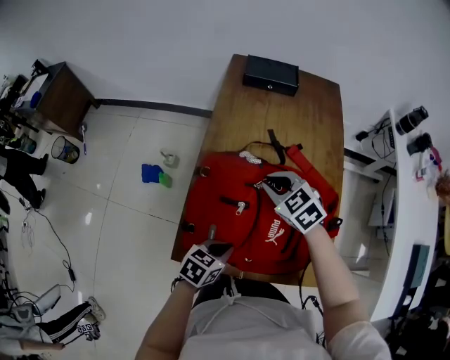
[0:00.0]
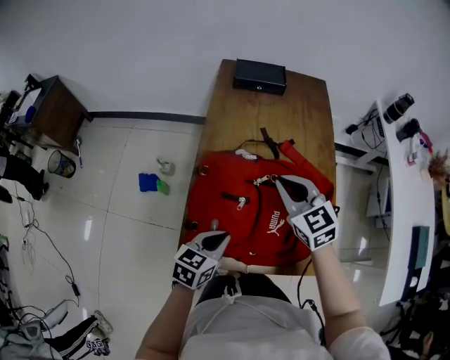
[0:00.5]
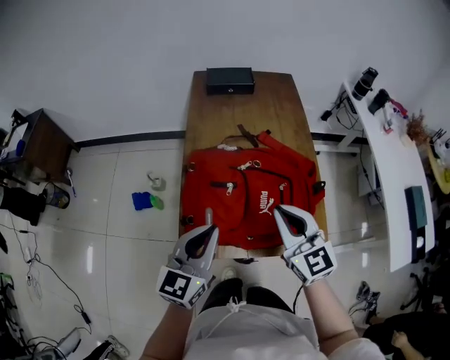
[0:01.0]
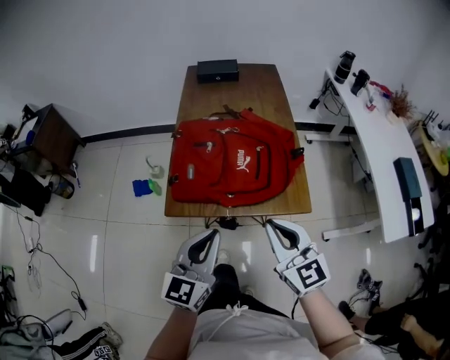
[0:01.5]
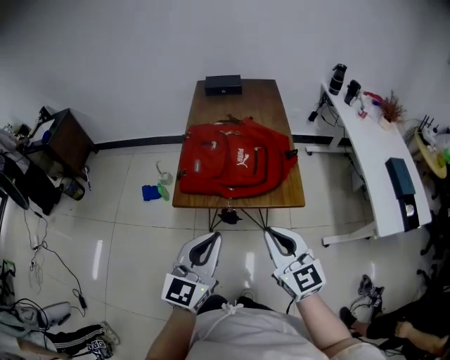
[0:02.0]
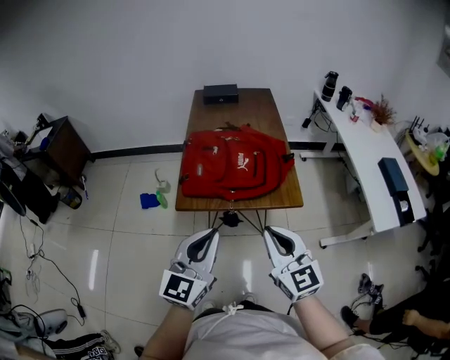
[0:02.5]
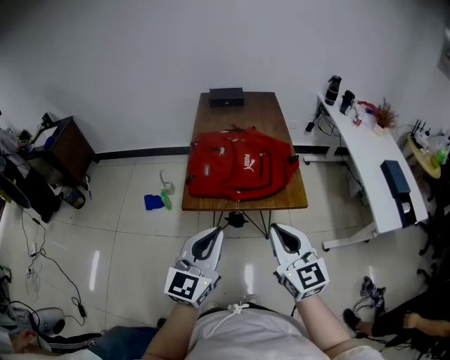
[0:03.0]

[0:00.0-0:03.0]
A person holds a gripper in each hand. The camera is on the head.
0:00.0 to 0:01.5: The right gripper goes about 40 cm backward, and points its fingers roughly 40 degrees further upward; the left gripper is displaced upward and backward by approximately 30 cm, and angles its fingers upward, by some 40 degrees.
0:01.5 to 0:03.0: Both grippers travel together backward and upward, roughly 15 cm.

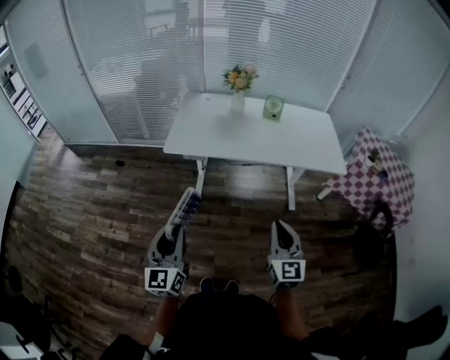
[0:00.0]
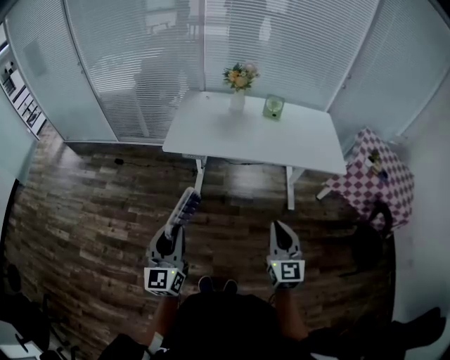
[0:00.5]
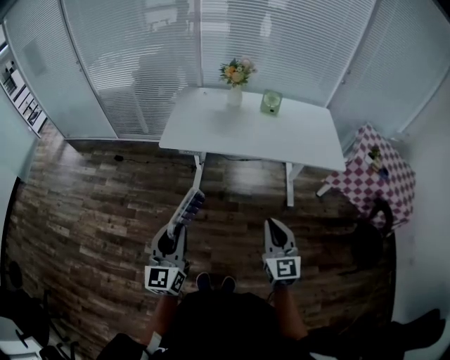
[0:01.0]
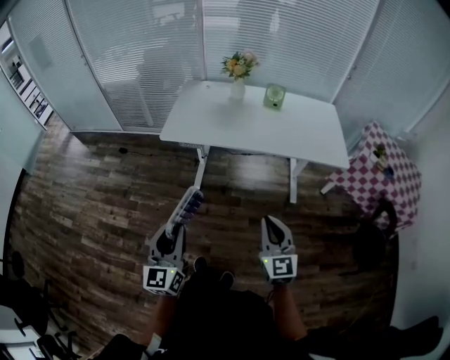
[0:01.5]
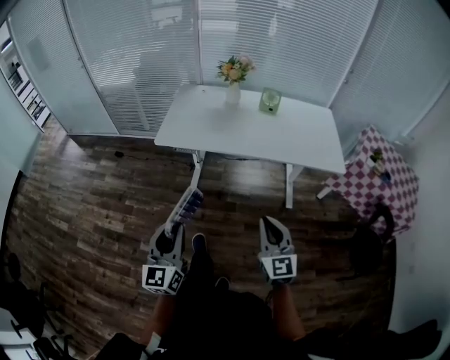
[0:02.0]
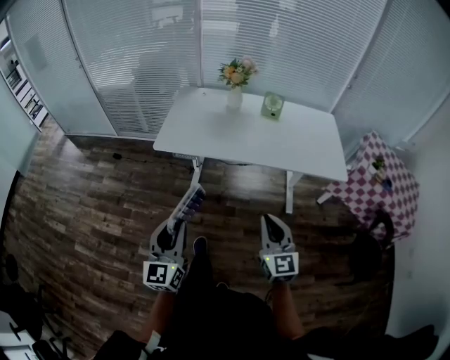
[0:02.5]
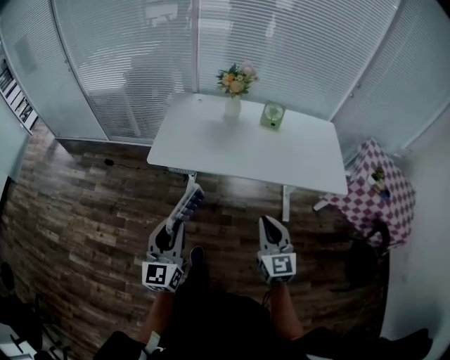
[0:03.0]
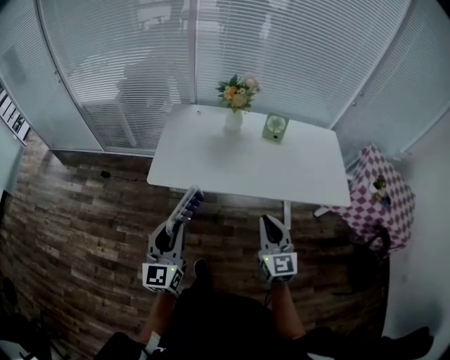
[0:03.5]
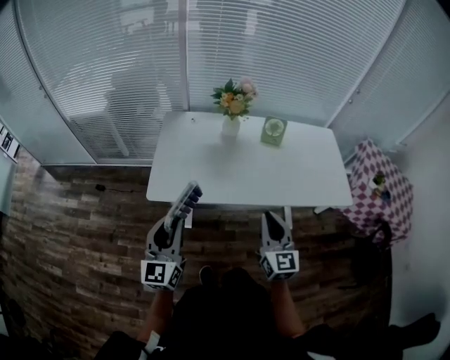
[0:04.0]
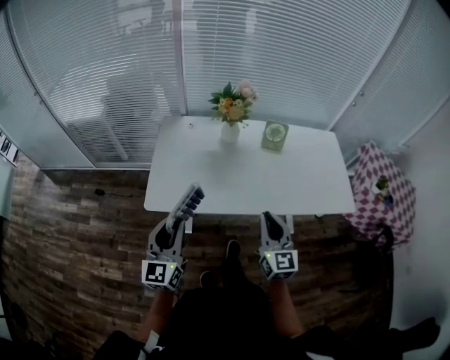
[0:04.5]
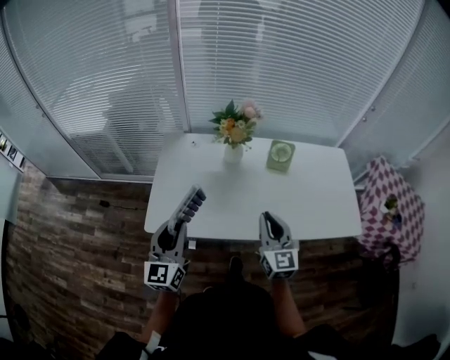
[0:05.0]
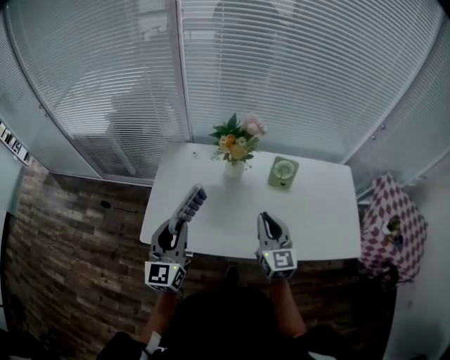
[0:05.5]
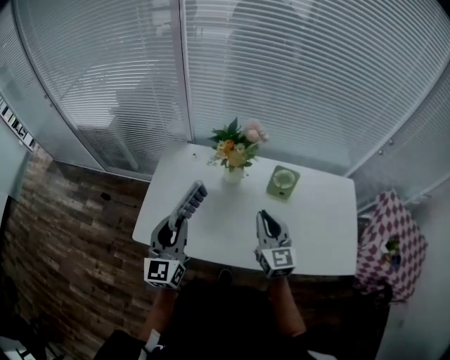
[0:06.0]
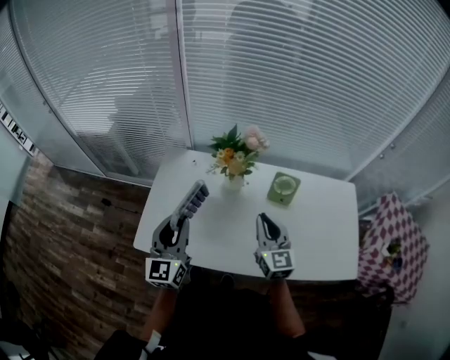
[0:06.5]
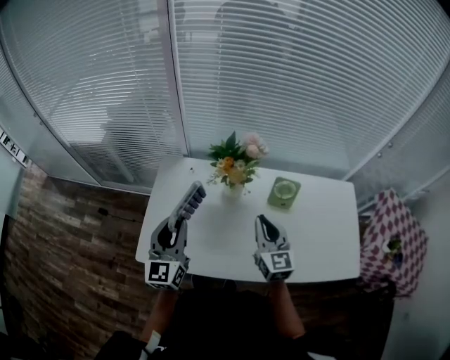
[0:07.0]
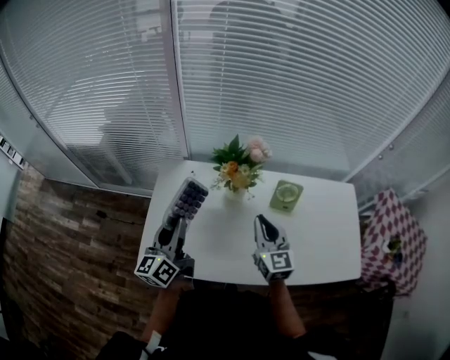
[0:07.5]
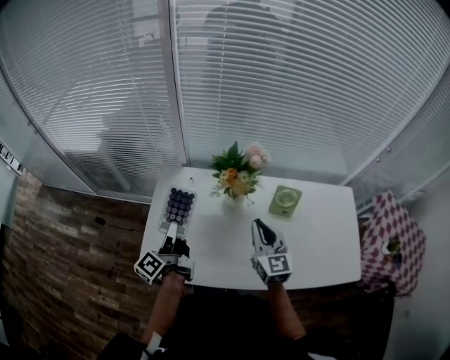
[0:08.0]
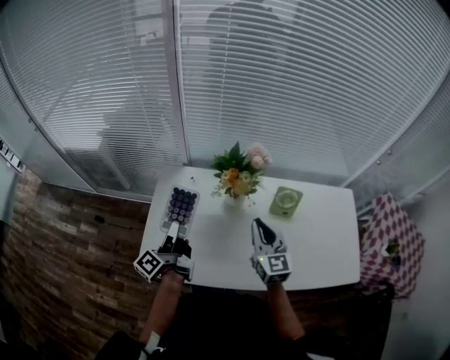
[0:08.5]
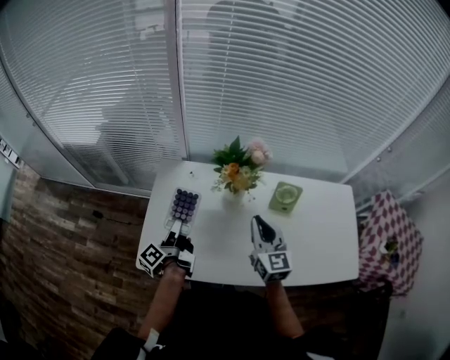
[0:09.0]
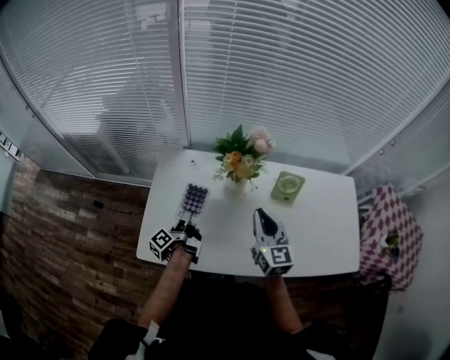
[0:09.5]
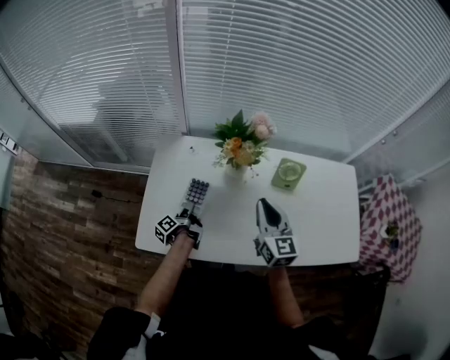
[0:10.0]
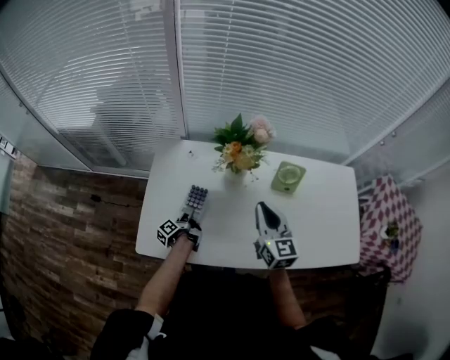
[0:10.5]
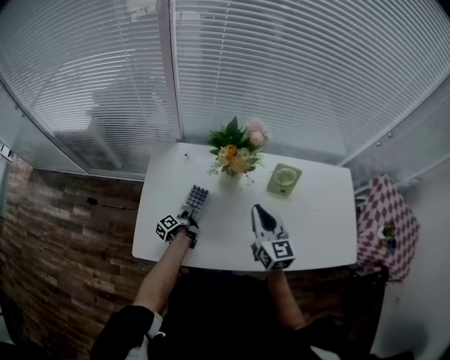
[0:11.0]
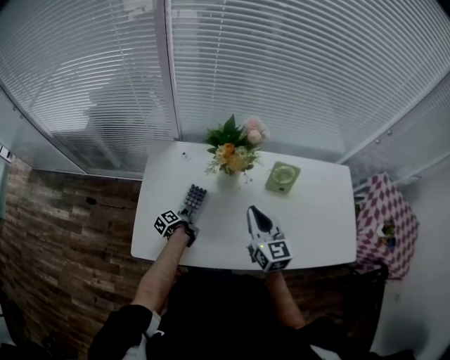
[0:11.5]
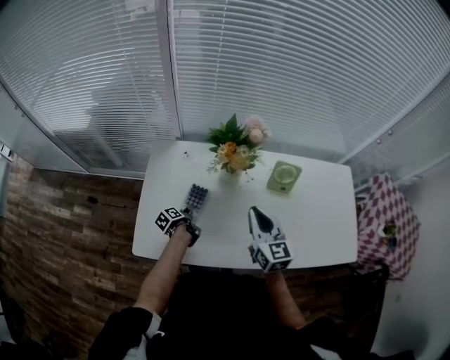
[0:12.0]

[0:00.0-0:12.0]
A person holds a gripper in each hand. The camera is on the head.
0:00.0 to 0:02.0: The left gripper moves to the right, some 10 cm.
0:02.0 to 0:04.0: Both grippers move forward, about 30 cm.
0:04.0 to 0:06.0: The two grippers go roughly 25 cm forward.
0:06.0 to 0:08.0: The left gripper shifts approximately 15 cm forward and to the left, and rotates around the line of its fingers by roughly 70 degrees, counterclockwise from behind. Meanwhile the right gripper travels forward by roughly 5 cm.
0:08.0 to 0:10.0: The left gripper travels downward by approximately 25 cm, and swivels approximately 30 degrees.
0:10.0 to 0:12.0: The left gripper heads downward, covering approximately 10 cm, rotates roughly 30 degrees, and opens.

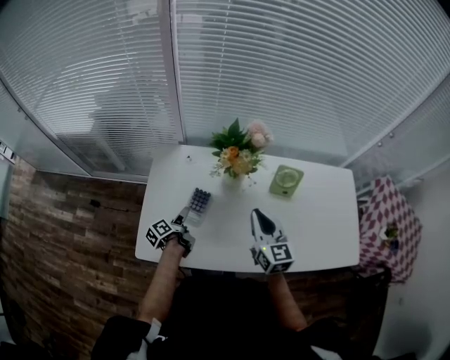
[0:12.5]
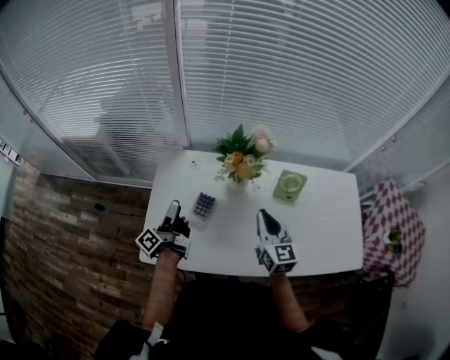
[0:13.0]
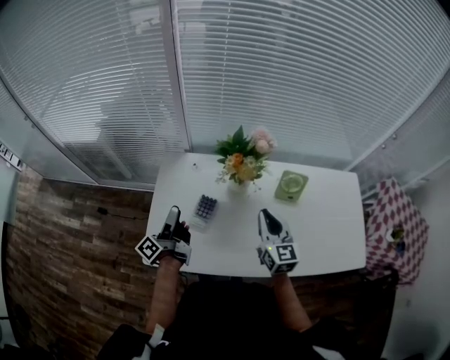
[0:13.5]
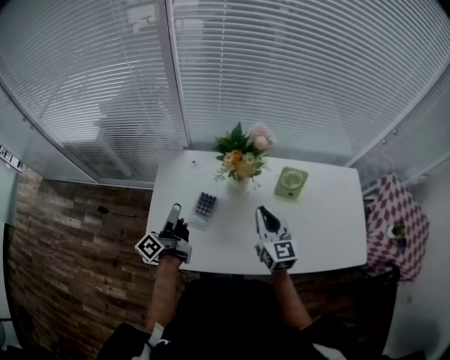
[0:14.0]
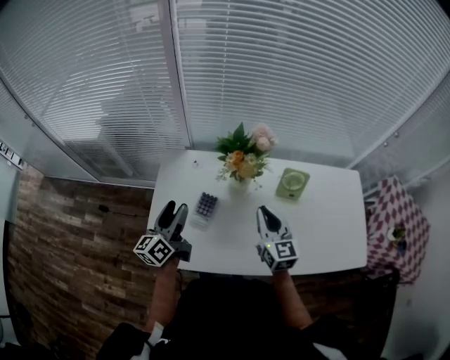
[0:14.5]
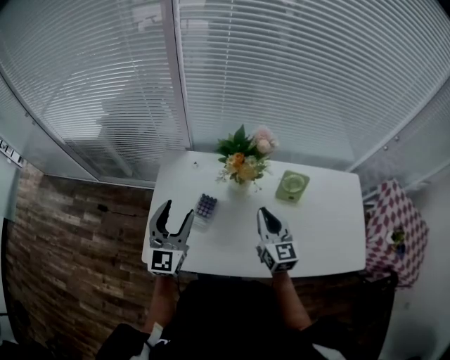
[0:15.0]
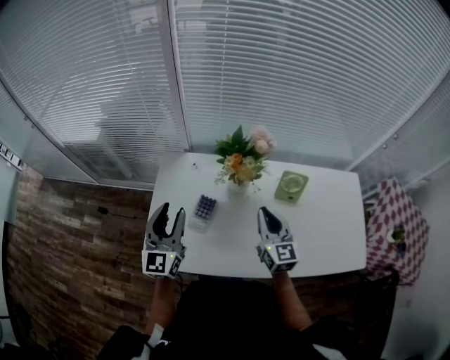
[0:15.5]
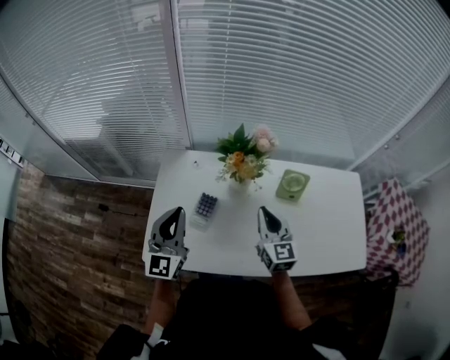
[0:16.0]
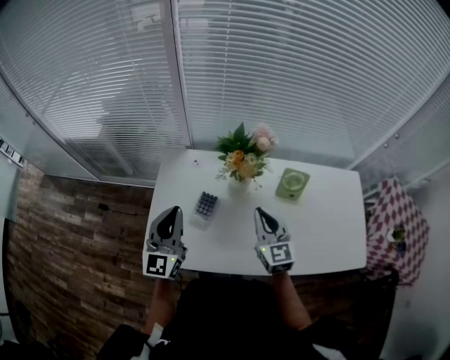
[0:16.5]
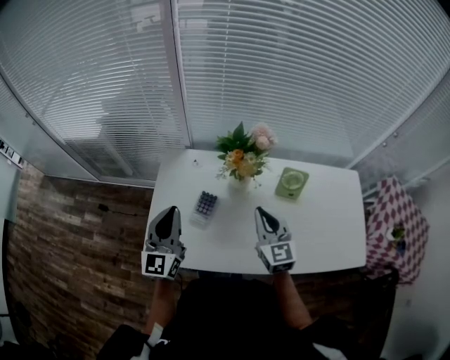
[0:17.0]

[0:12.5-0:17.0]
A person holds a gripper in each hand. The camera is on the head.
0:12.5 to 0:14.5: The left gripper moves upward, some 20 cm, and twists approximately 40 degrees clockwise, seen from behind.
0:14.5 to 0:17.0: The left gripper heads upward, covering approximately 5 cm, changes its angle by some 40 degrees, and closes its fingers.

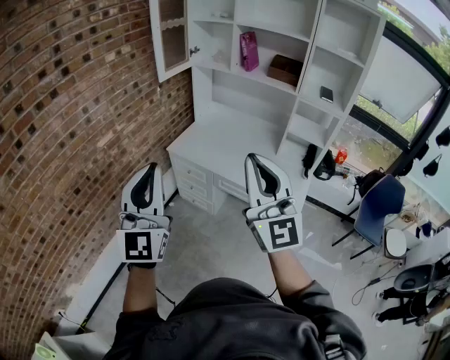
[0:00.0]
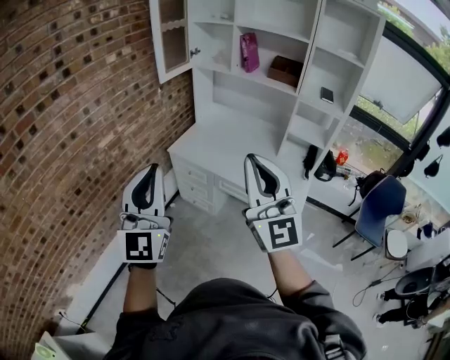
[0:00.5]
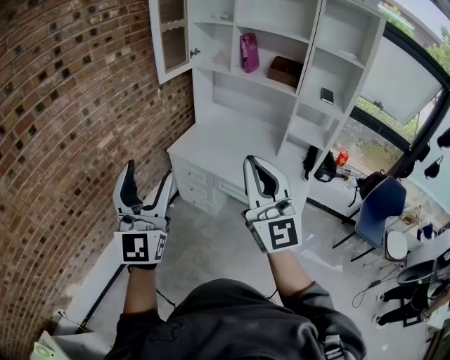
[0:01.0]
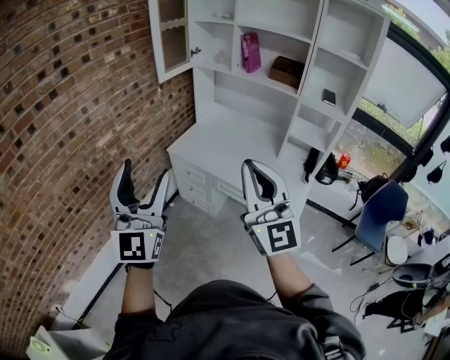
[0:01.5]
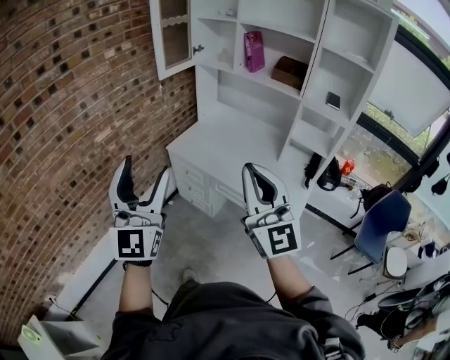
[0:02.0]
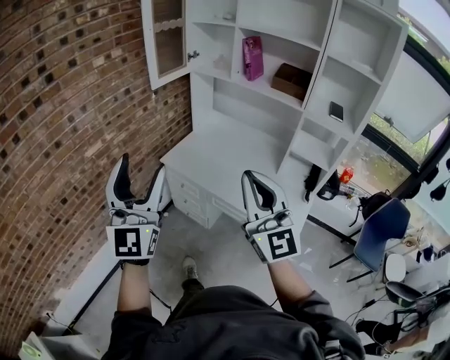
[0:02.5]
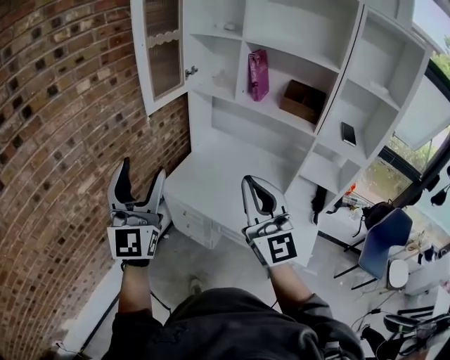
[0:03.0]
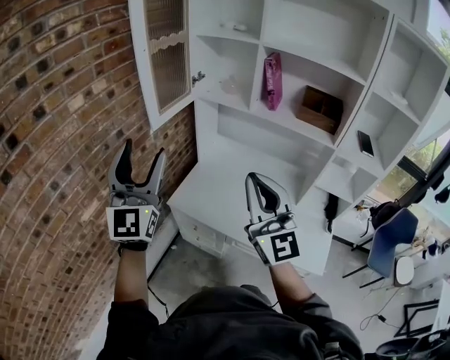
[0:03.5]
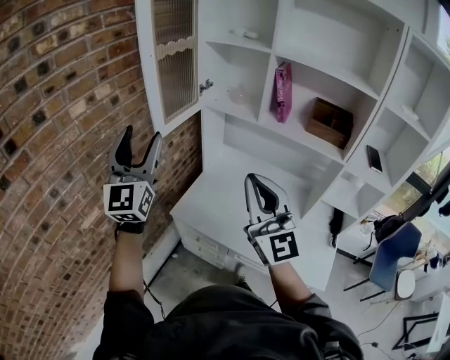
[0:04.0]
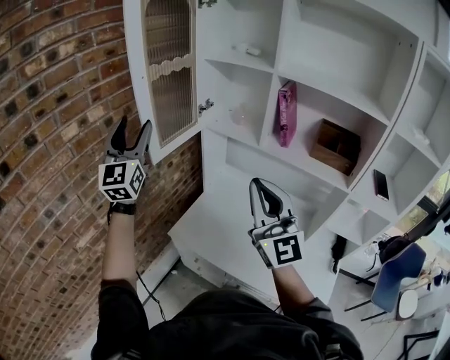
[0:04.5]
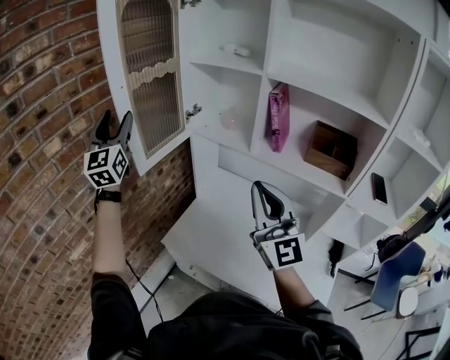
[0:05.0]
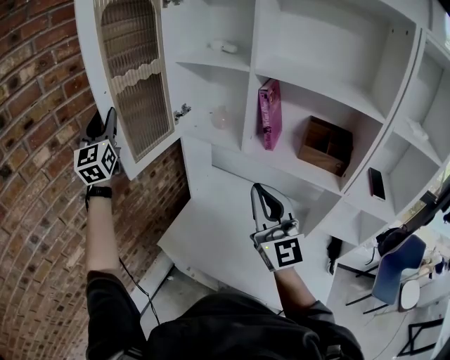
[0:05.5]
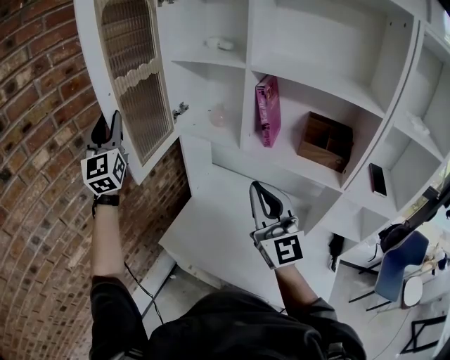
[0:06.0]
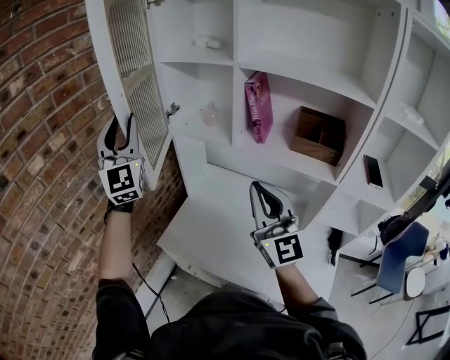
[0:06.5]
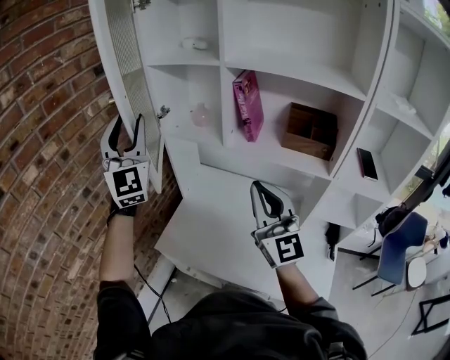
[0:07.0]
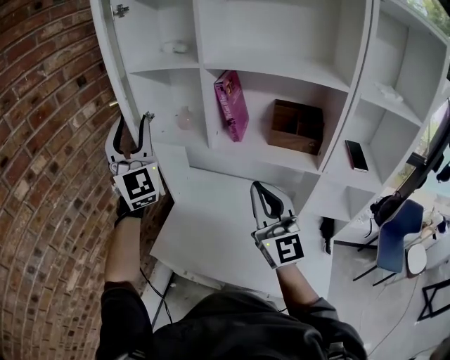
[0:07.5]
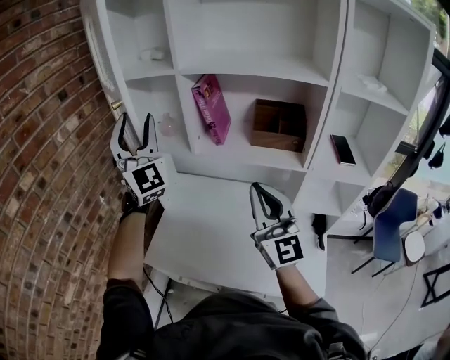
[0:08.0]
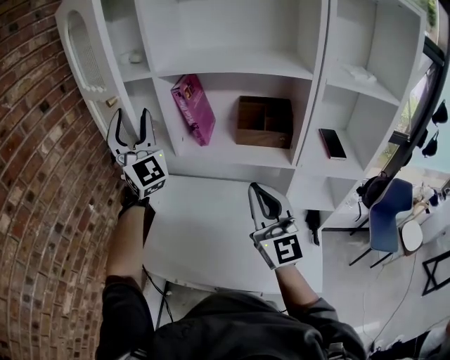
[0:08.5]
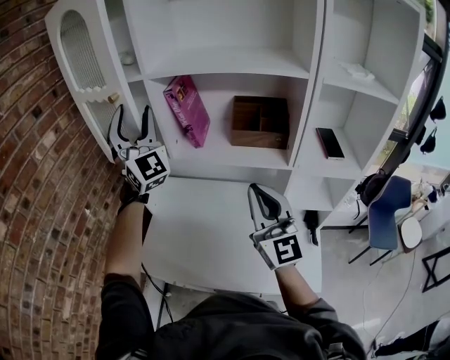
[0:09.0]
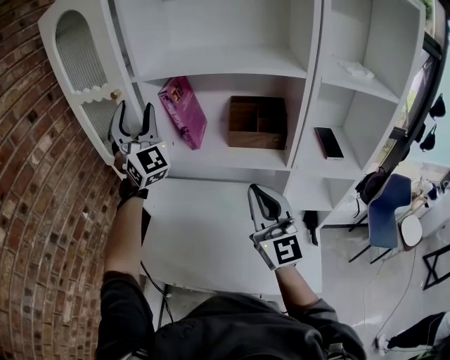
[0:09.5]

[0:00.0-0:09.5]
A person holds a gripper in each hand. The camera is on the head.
0:00.0 to 0:02.0: Both grippers travel together to the right, about 5 cm. The left gripper opens up.
0:02.0 to 0:04.0: Both grippers are carried forward, approximately 50 cm.
0:04.0 to 0:05.5: The right gripper shifts approximately 15 cm forward and to the right, while the left gripper heads forward, covering some 25 cm, and closes its fingers.
0:05.5 to 0:07.5: The left gripper goes approximately 20 cm to the right, and swivels roughly 20 degrees. The right gripper moves to the right, roughly 5 cm.
0:07.5 to 0:09.5: The left gripper shifts roughly 20 cm to the right and forward. Meanwhile the right gripper travels to the right by some 10 cm.
